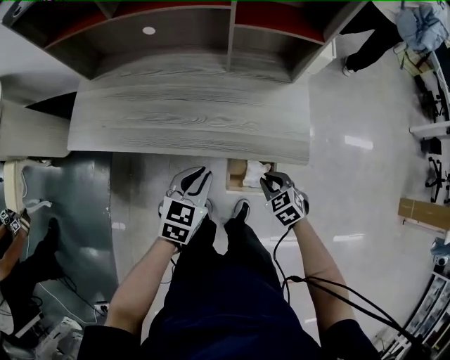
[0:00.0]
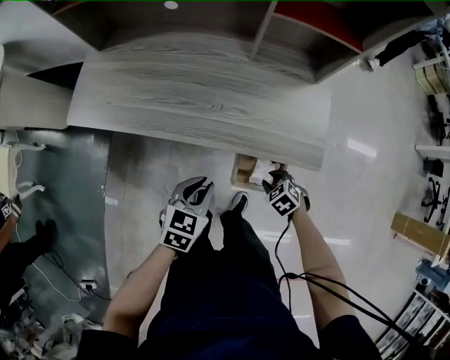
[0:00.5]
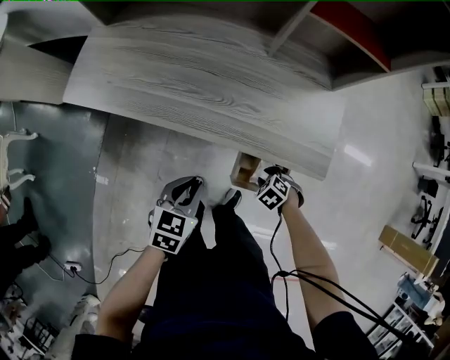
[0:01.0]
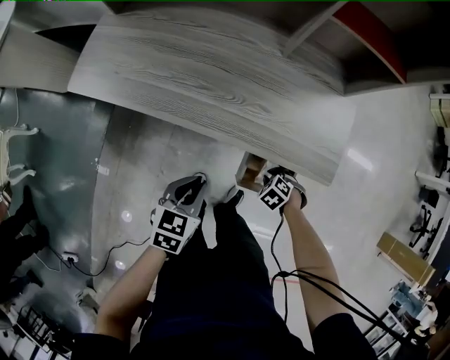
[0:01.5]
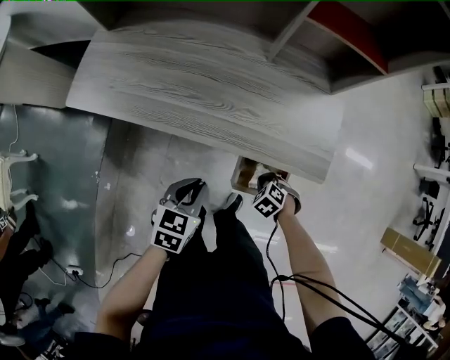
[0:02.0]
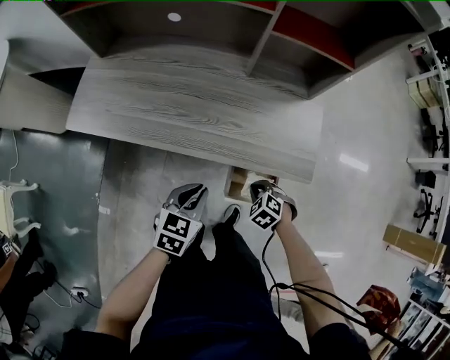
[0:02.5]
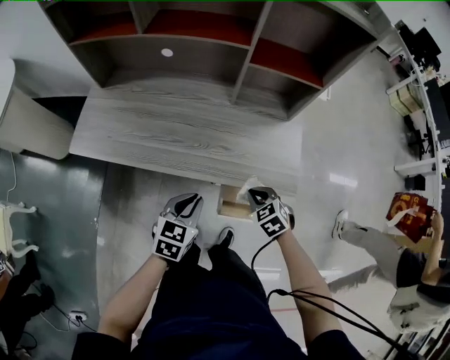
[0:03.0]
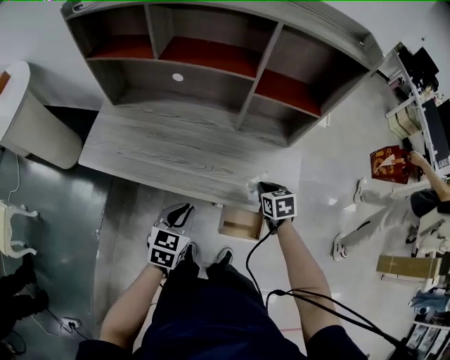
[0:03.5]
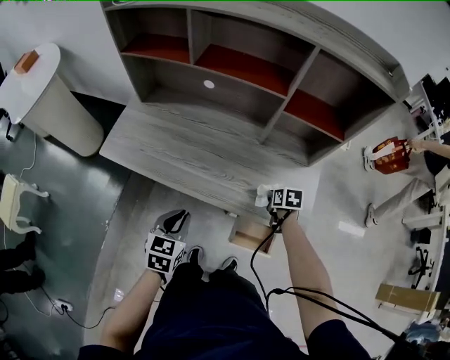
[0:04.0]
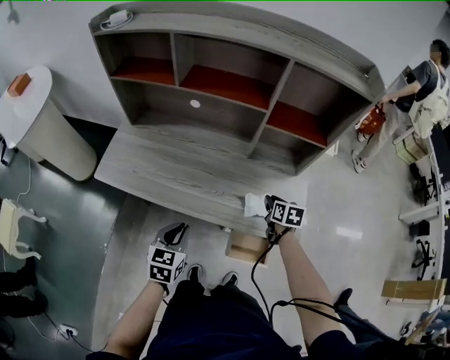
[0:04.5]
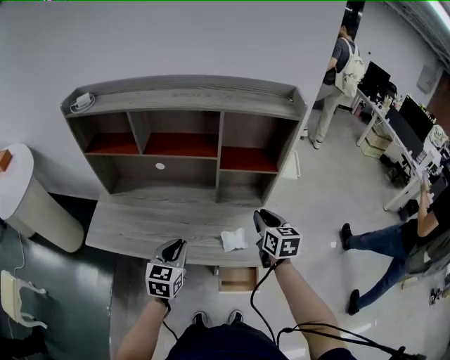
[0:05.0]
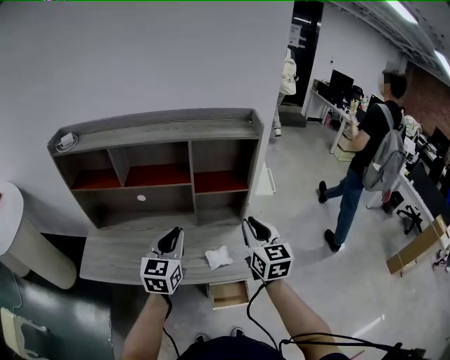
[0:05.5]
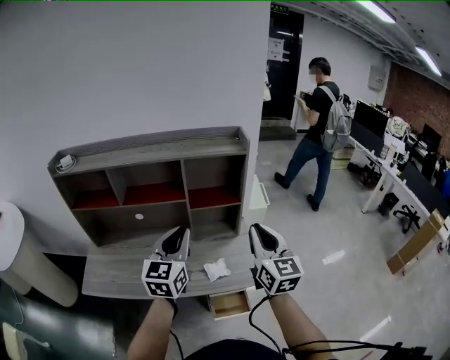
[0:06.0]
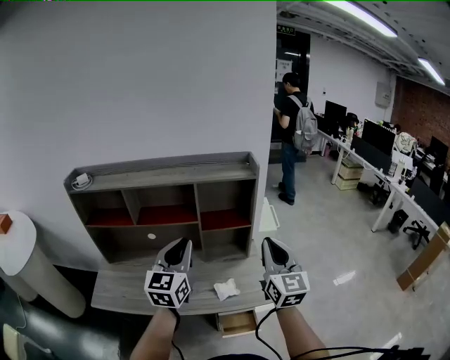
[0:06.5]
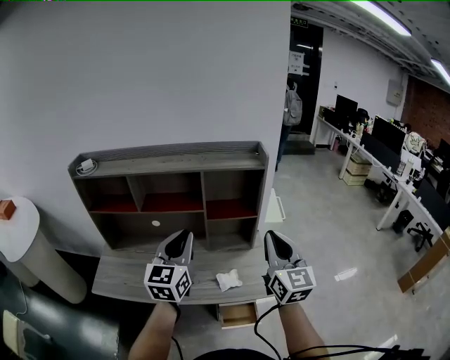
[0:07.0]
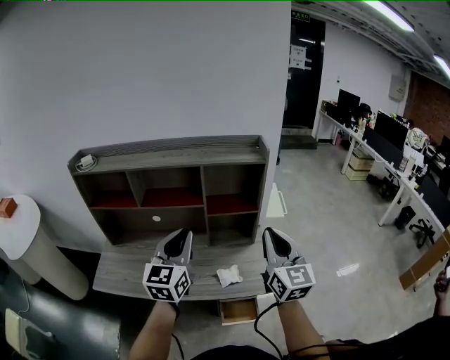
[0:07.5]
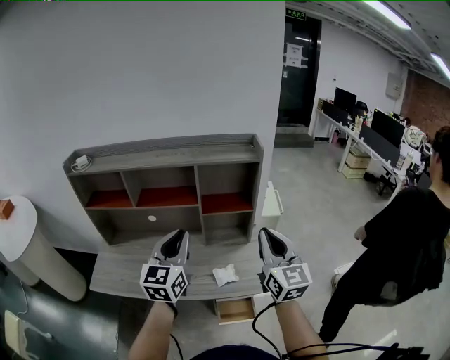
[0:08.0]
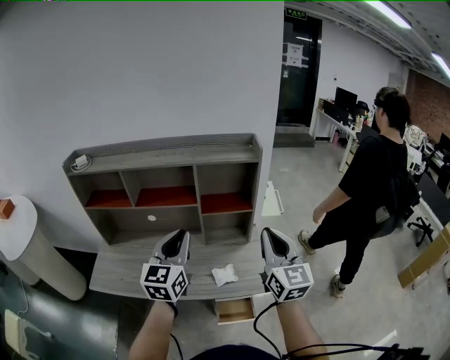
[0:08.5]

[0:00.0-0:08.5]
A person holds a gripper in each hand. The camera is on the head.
0:00.0 to 0:02.0: The left gripper ends up roughly 10 cm from where it was. The right gripper shifts about 15 cm downward, and rotates roughly 30 degrees.
0:02.0 to 0:04.0: The left gripper travels upward by approximately 10 cm; the right gripper ends up some 25 cm from where it was, and rotates around the line of its fingers by some 60 degrees, clockwise from behind.
0:04.0 to 0:06.5: Both grippers move upward, roughly 40 cm. The right gripper tilts its fingers about 70 degrees upward. Meanwhile the left gripper angles its fingers upward, by about 40 degrees.
0:06.5 to 0:08.5: The grippers make only small movements.

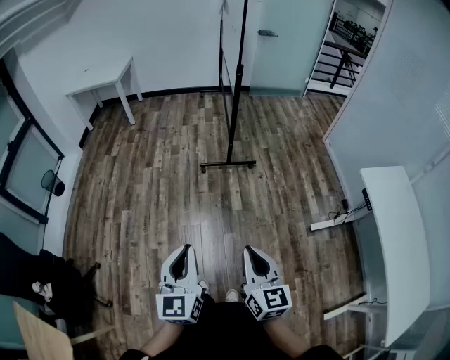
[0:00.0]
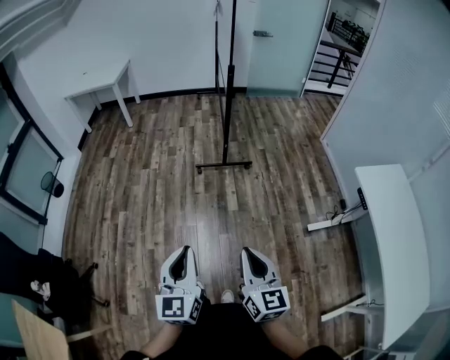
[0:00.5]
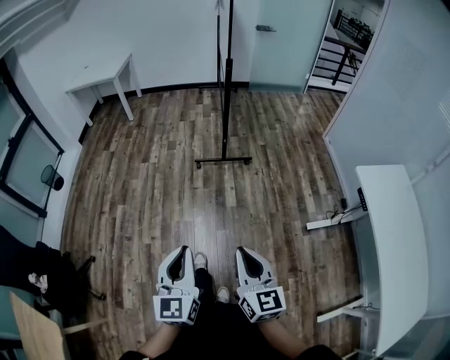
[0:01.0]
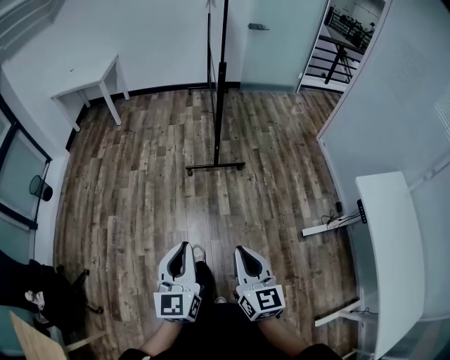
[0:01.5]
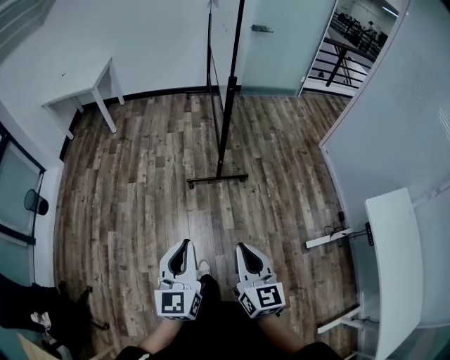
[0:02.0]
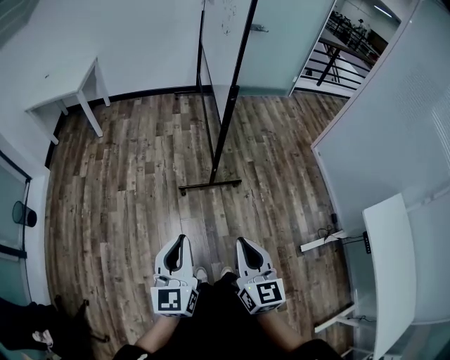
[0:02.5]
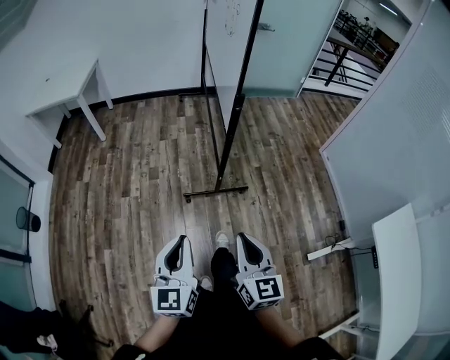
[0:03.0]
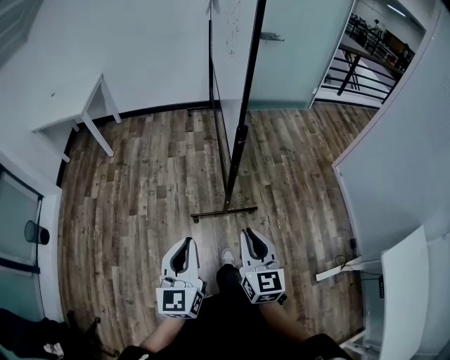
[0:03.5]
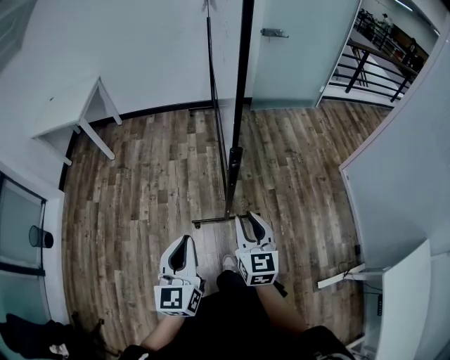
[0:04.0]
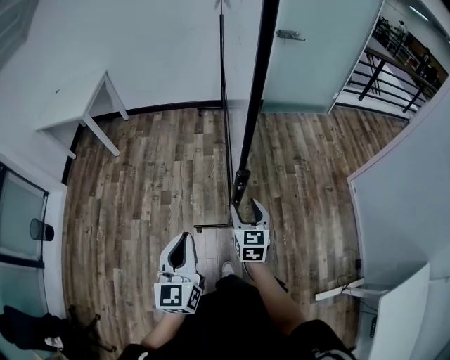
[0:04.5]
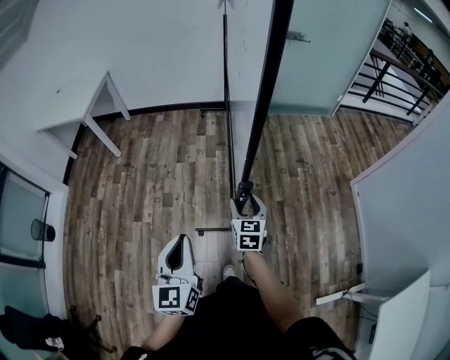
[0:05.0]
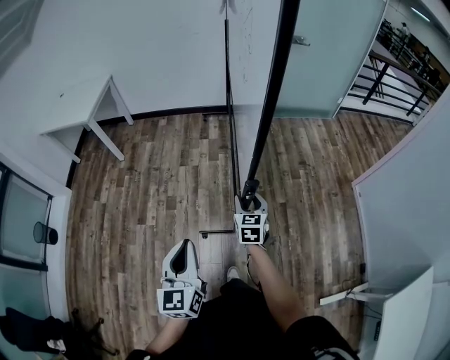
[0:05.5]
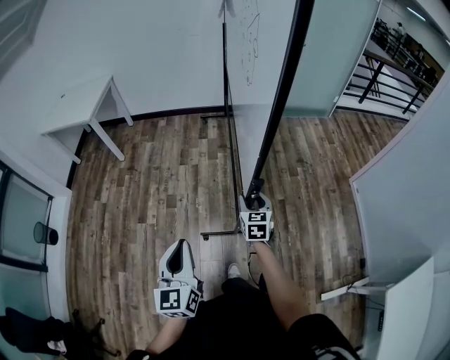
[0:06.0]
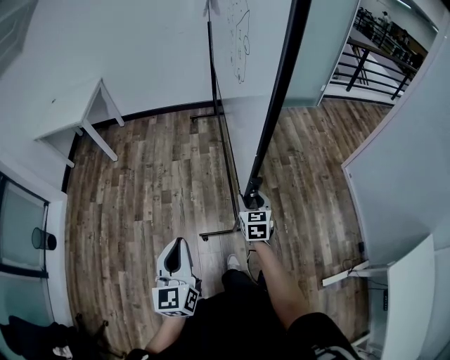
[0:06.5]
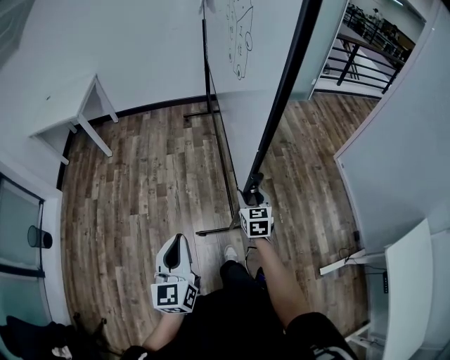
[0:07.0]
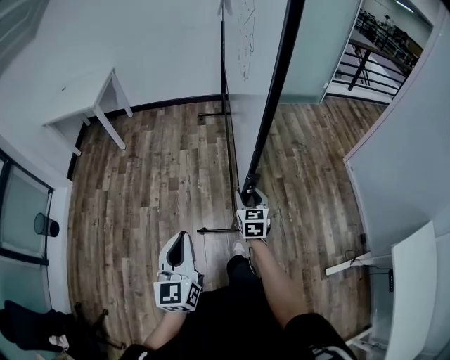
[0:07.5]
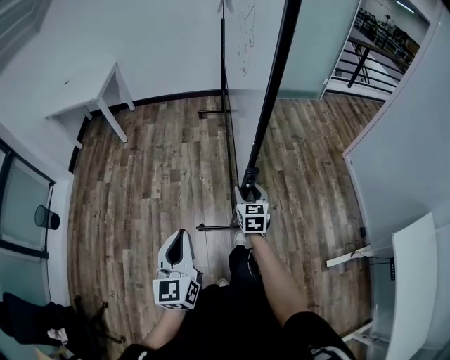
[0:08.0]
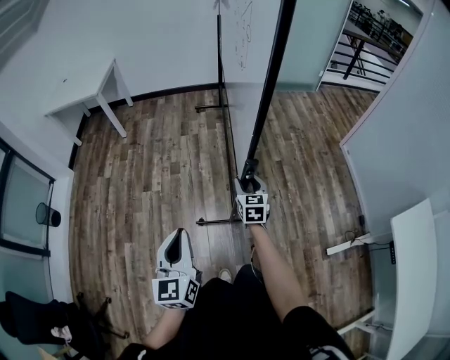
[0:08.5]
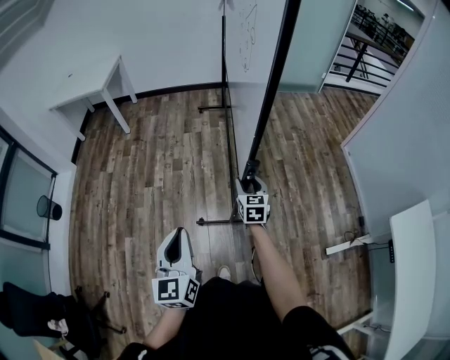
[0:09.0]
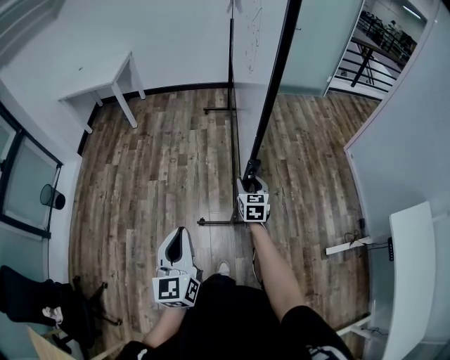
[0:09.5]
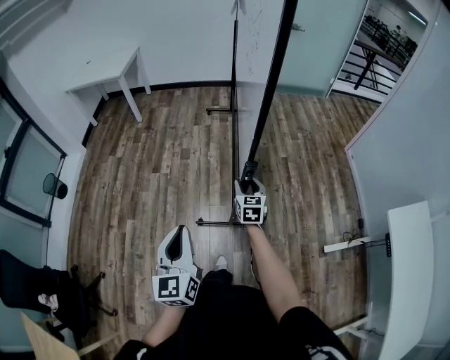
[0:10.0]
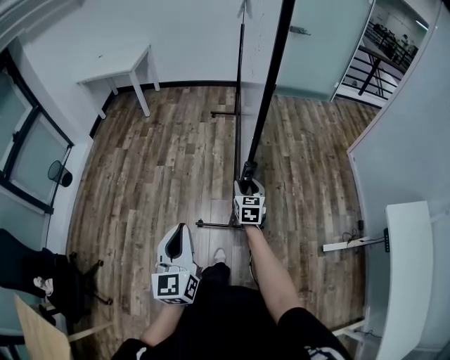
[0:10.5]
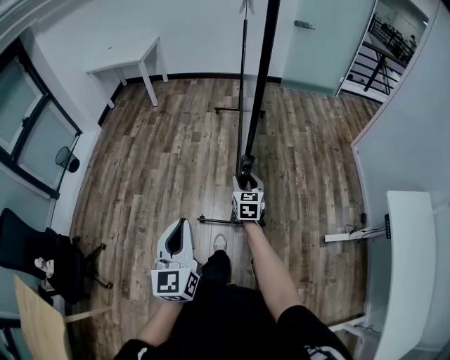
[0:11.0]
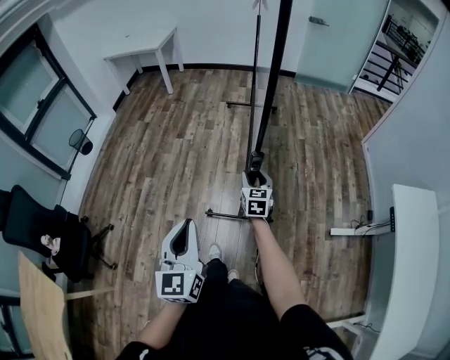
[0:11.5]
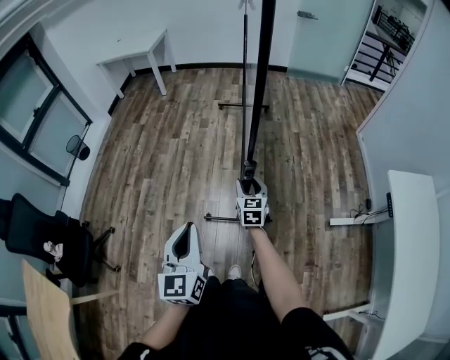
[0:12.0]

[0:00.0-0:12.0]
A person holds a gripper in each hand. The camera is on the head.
0:00.0 to 0:02.0: Both grippers travel together forward, some 30 cm.
0:02.0 to 0:04.0: Both grippers are carried forward, about 50 cm.
0:04.0 to 0:06.0: The right gripper travels forward and downward by approximately 20 cm, and opens its fingers.
0:06.0 to 0:08.0: Both grippers move backward, roughly 25 cm.
0:08.0 to 0:10.0: Both grippers travel together backward, approximately 20 cm.
0:10.0 to 0:12.0: Both grippers move backward, some 30 cm.

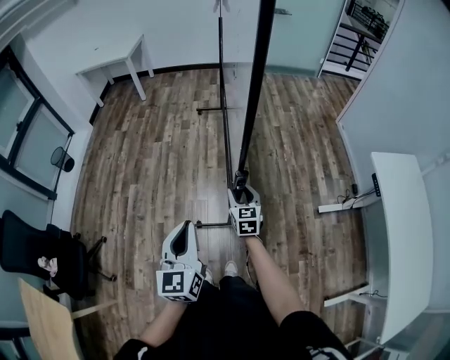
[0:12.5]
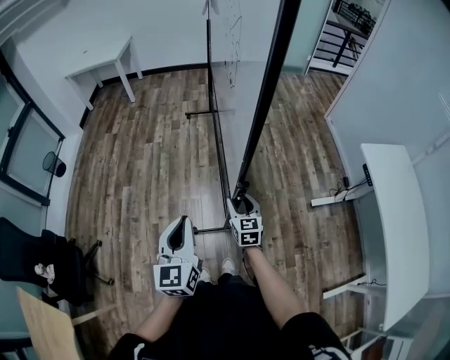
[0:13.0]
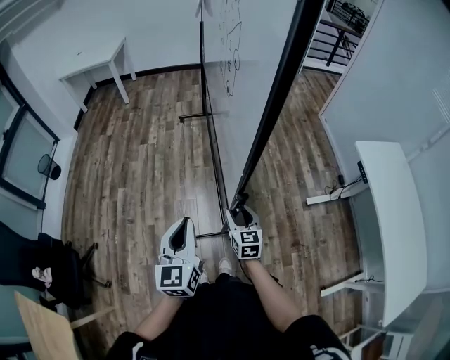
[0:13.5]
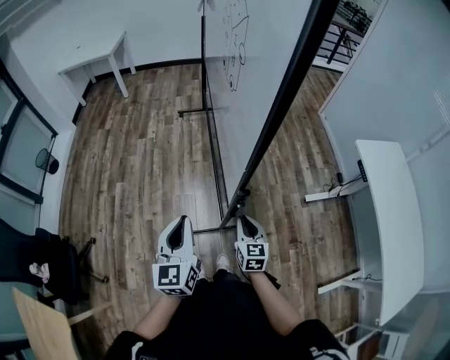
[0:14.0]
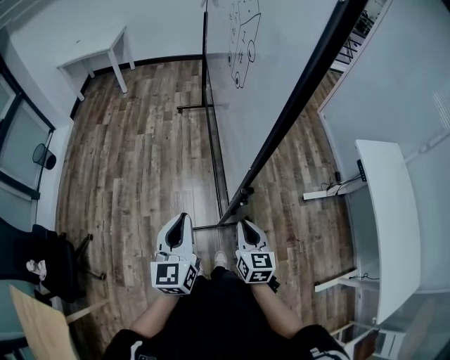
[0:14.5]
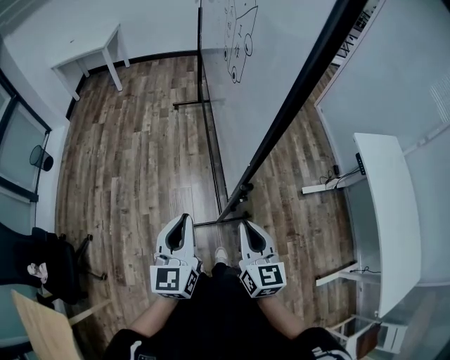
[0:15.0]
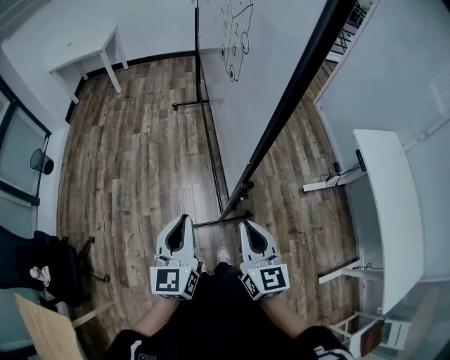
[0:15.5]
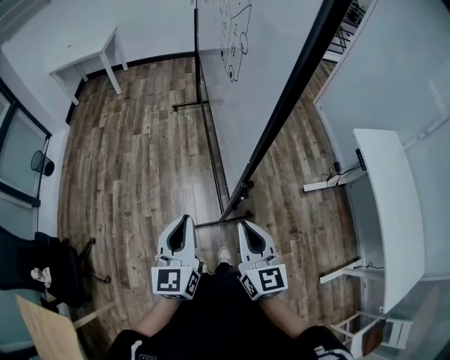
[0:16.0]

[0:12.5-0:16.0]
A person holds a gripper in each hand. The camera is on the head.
0:12.5 to 0:14.5: The right gripper heads backward, covering roughly 20 cm, and closes its fingers.
0:14.5 to 0:16.0: The right gripper shifts approximately 10 cm upward.

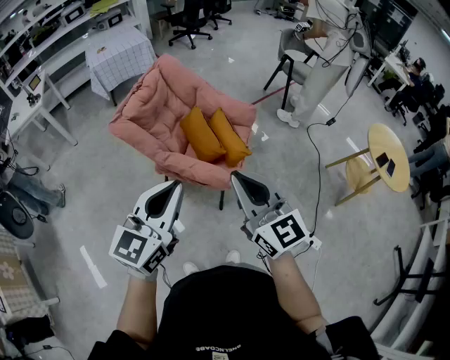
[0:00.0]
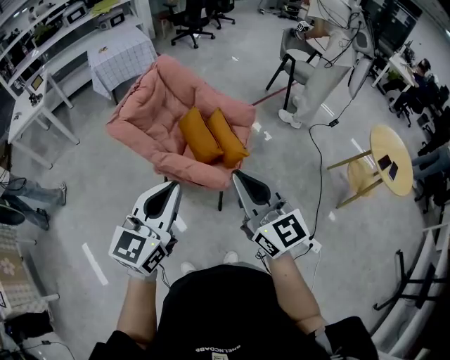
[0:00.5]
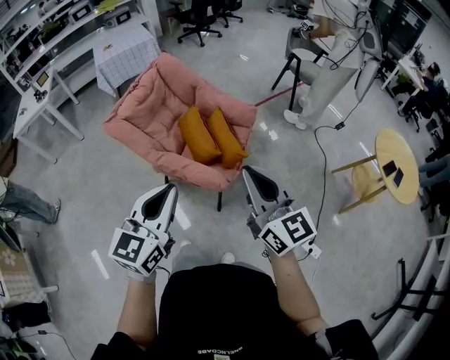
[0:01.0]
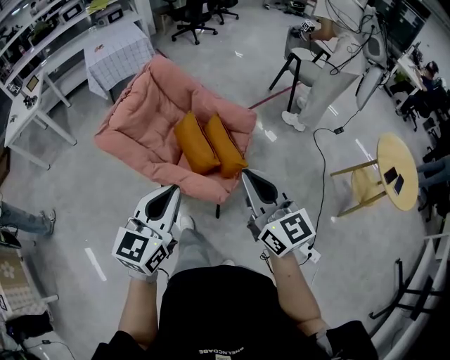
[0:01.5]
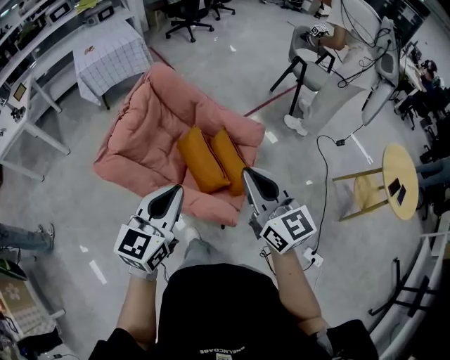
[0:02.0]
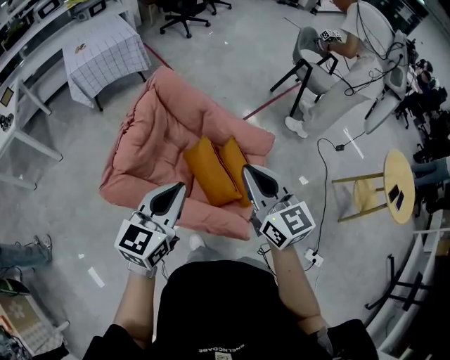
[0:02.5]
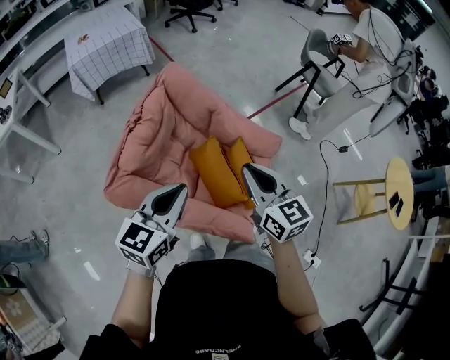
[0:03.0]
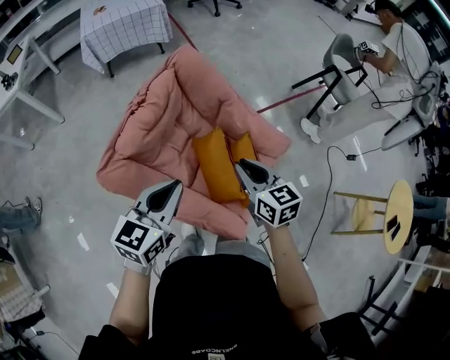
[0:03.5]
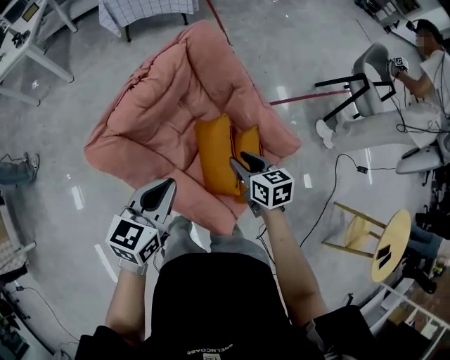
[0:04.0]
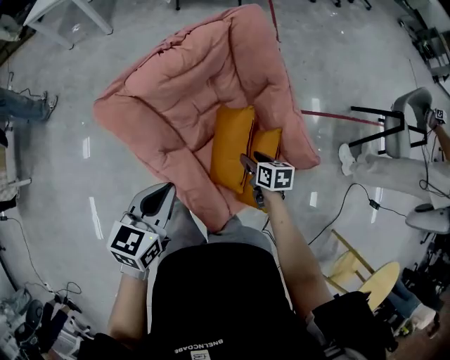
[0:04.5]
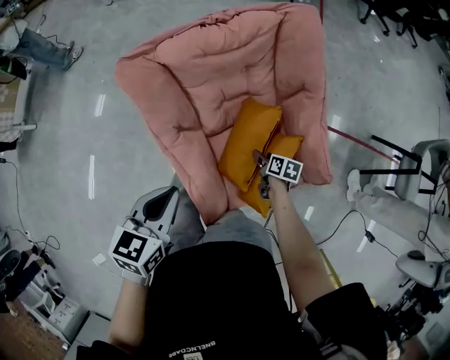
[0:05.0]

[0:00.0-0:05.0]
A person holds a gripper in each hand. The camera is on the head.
0:00.0 to 0:02.5: Both grippers travel together forward, some 35 cm.
0:02.5 to 0:05.0: The right gripper heads downward, covering approximately 50 cm, tips its fingers downward by about 50 degrees, and opens; the left gripper moves downward, some 15 cm, and swivels approximately 60 degrees.
